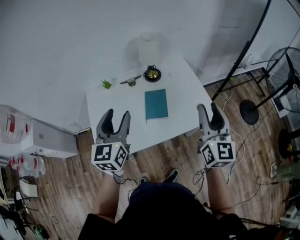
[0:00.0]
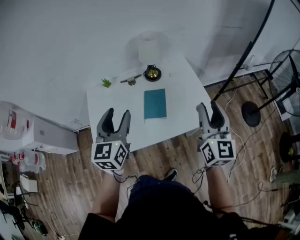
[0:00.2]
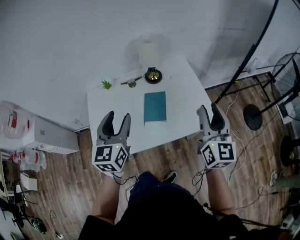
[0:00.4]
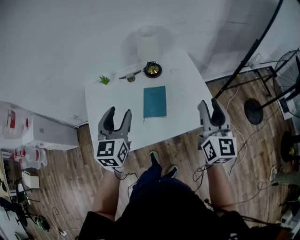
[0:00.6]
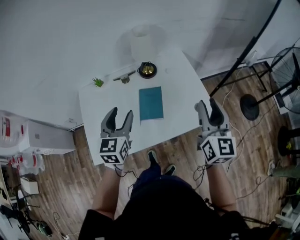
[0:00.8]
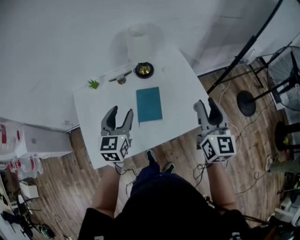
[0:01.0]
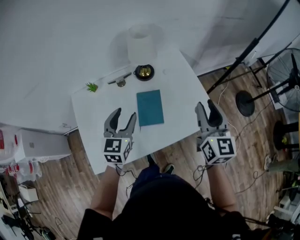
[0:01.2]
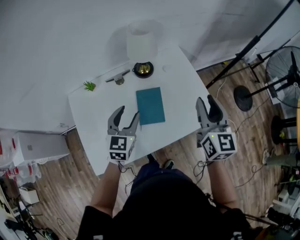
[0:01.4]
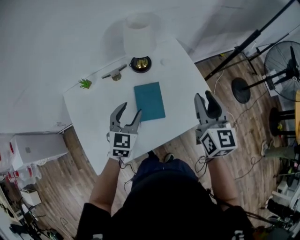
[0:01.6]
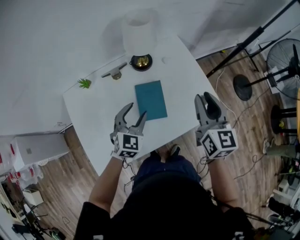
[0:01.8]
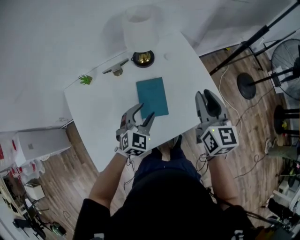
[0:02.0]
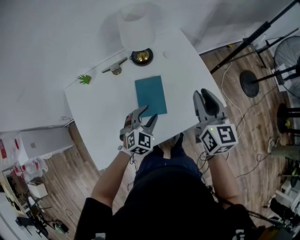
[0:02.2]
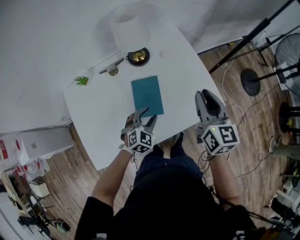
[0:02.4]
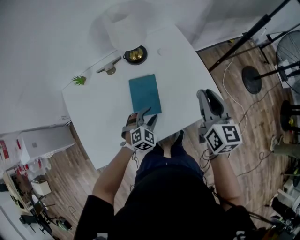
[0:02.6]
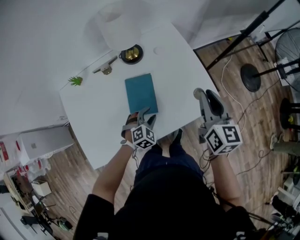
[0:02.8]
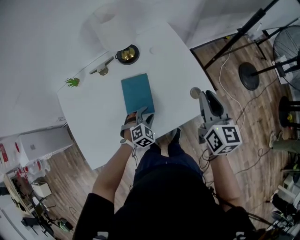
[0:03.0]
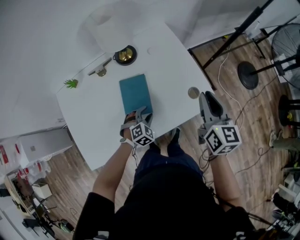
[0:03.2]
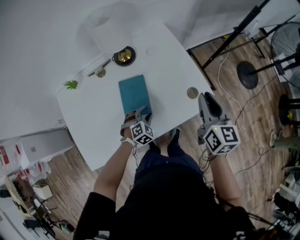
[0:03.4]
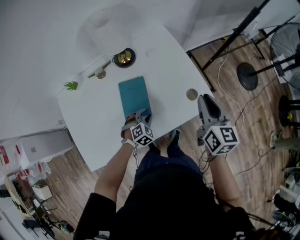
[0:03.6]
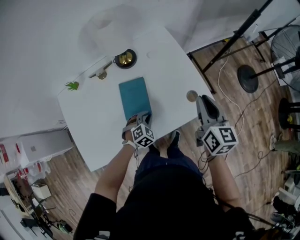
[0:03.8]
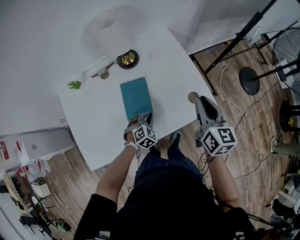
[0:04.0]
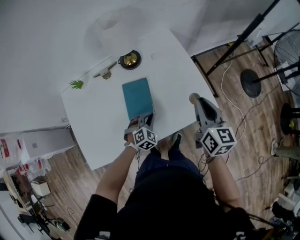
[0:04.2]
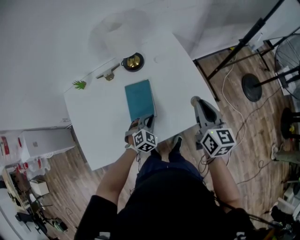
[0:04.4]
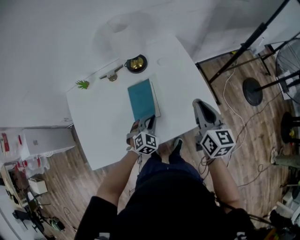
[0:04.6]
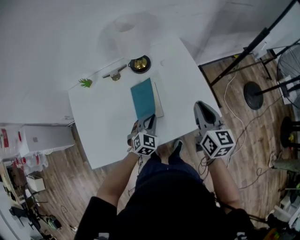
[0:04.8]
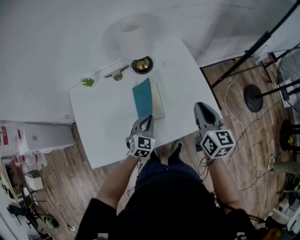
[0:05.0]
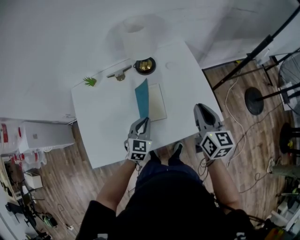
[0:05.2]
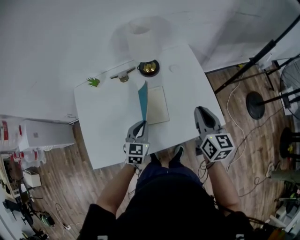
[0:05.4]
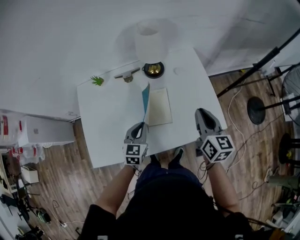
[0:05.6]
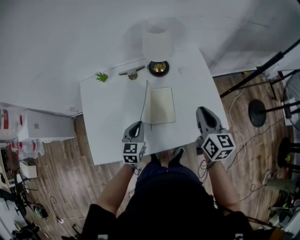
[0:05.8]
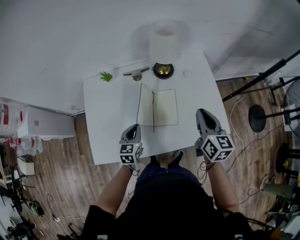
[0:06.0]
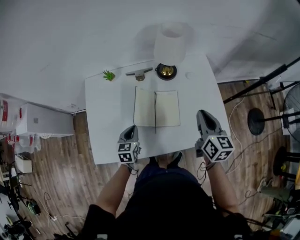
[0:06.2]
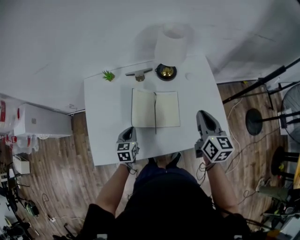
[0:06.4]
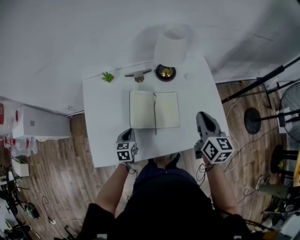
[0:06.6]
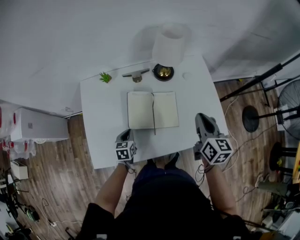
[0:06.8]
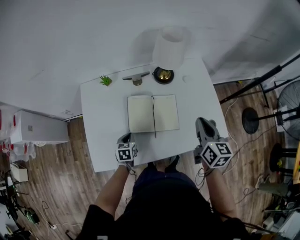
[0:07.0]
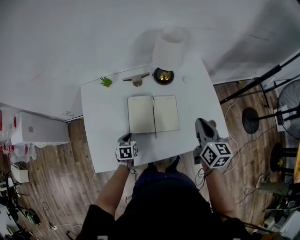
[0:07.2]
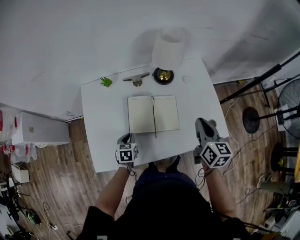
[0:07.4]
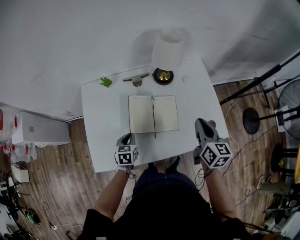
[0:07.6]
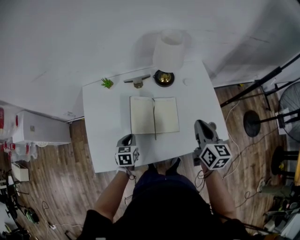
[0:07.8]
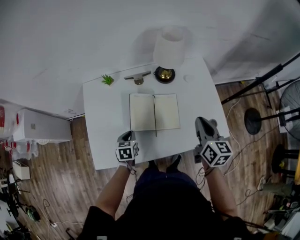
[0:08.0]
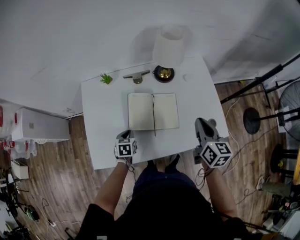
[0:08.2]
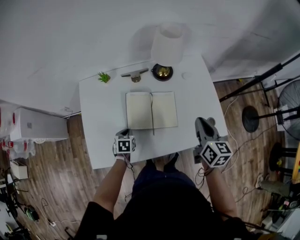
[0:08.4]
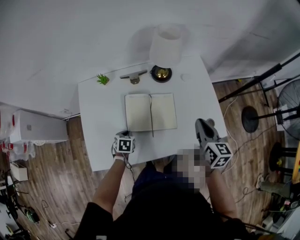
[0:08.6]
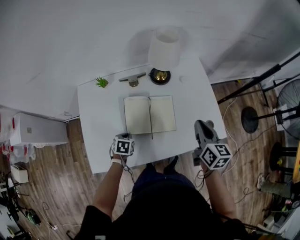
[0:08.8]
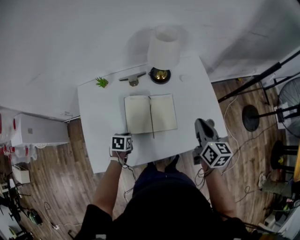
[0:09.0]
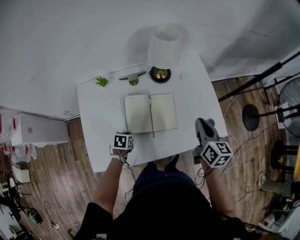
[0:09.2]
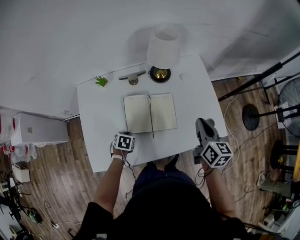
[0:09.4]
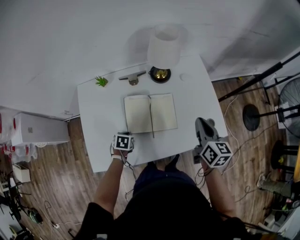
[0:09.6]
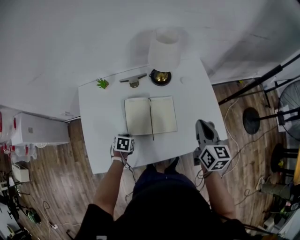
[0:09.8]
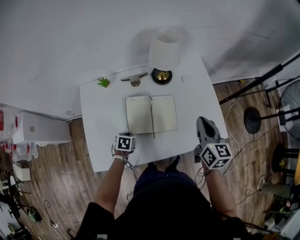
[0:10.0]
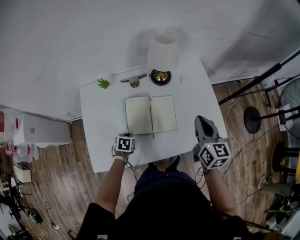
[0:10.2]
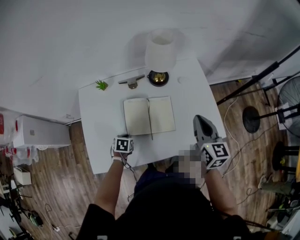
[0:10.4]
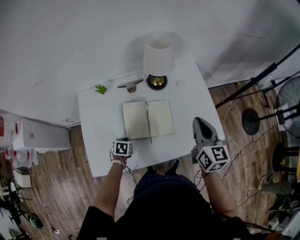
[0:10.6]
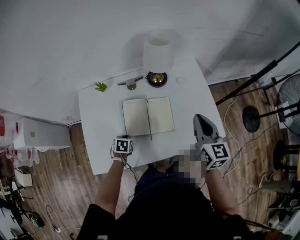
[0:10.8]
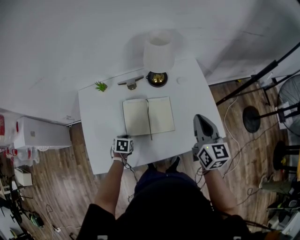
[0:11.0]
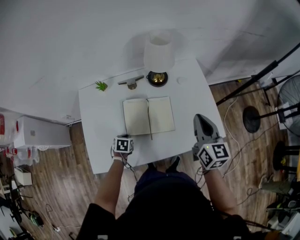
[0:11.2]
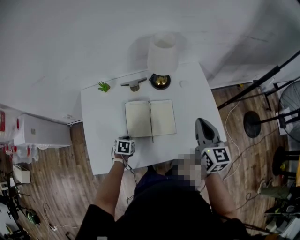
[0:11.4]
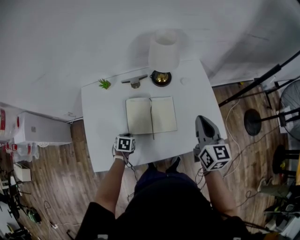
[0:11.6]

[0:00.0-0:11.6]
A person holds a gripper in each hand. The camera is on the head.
0:00.0 to 0:01.4: Both grippers travel together forward and downward, about 20 cm. The left gripper rotates roughly 20 degrees.
0:01.4 to 0:02.8: The left gripper heads downward and to the right, covering approximately 30 cm, and tilts its fingers approximately 30 degrees downward, while the right gripper travels downward and to the right by some 15 cm.
0:02.8 to 0:04.4: The left gripper closes up.
0:04.4 to 0:05.8: The left gripper travels to the left and upward by about 20 cm, and twists about 50 degrees counterclockwise, seen from behind. Meanwhile the right gripper goes approximately 10 cm to the left.
0:05.8 to 0:07.2: The left gripper is displaced downward and to the left by approximately 20 cm, and changes its angle by about 30 degrees. Meanwhile the right gripper is displaced to the left by roughly 5 cm.
0:08.8 to 0:11.6: There are only small adjustments of the grippers.

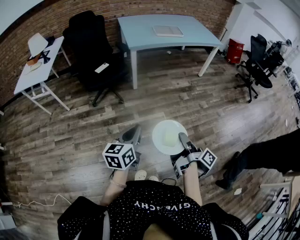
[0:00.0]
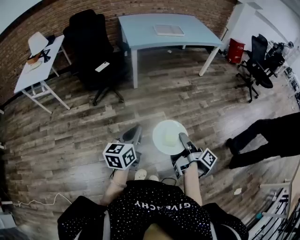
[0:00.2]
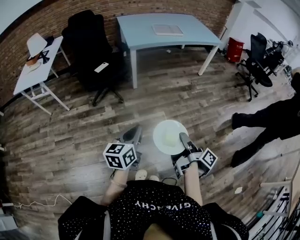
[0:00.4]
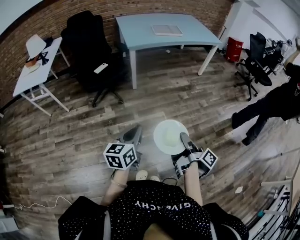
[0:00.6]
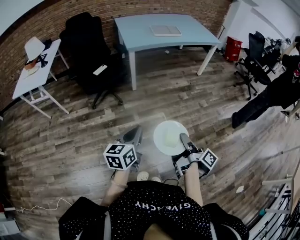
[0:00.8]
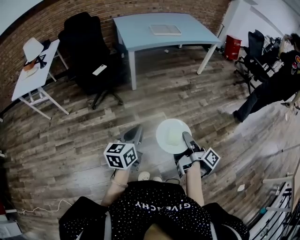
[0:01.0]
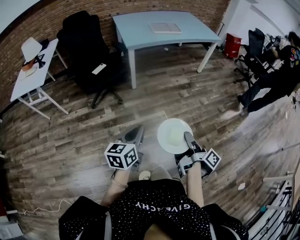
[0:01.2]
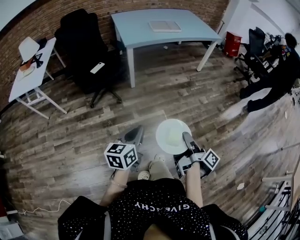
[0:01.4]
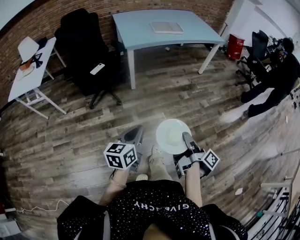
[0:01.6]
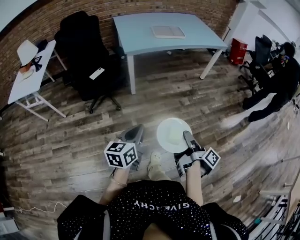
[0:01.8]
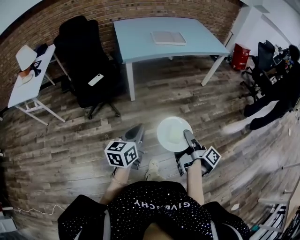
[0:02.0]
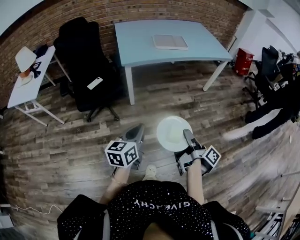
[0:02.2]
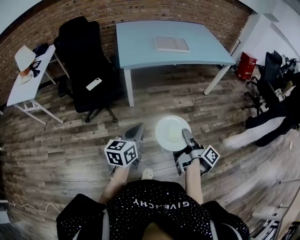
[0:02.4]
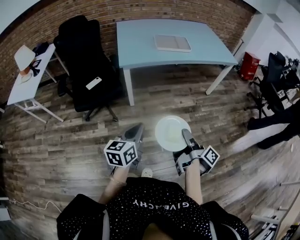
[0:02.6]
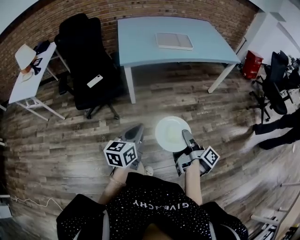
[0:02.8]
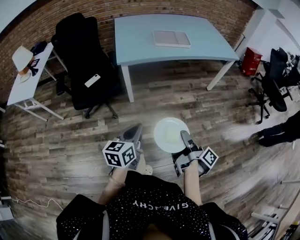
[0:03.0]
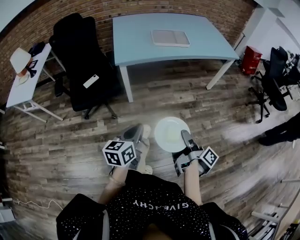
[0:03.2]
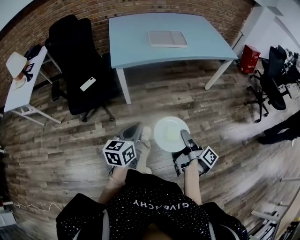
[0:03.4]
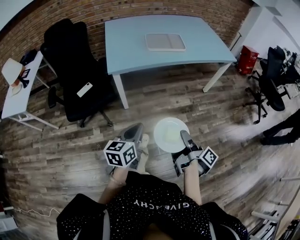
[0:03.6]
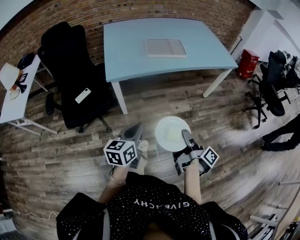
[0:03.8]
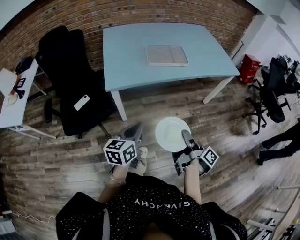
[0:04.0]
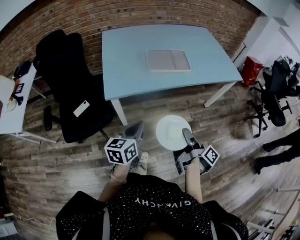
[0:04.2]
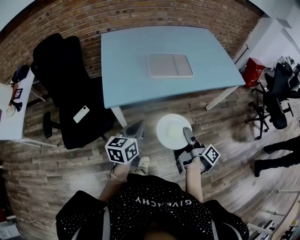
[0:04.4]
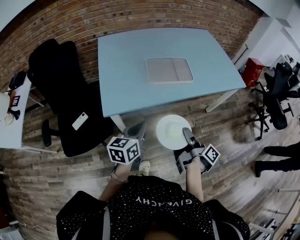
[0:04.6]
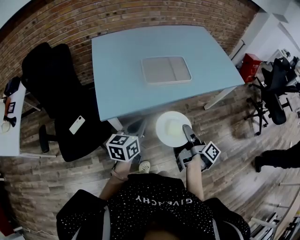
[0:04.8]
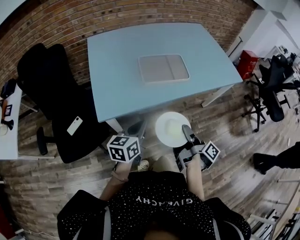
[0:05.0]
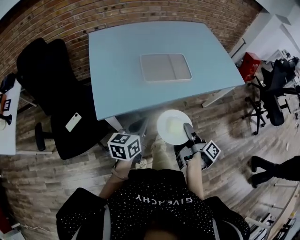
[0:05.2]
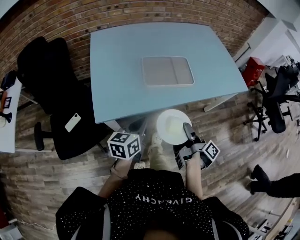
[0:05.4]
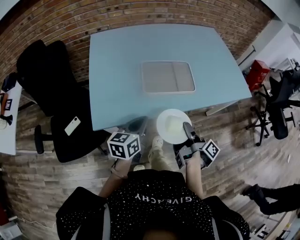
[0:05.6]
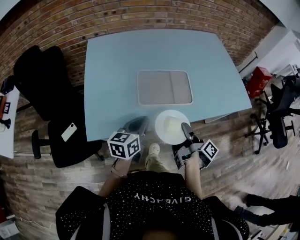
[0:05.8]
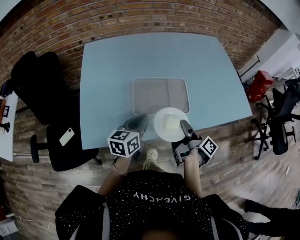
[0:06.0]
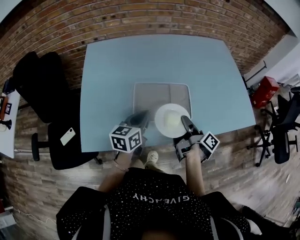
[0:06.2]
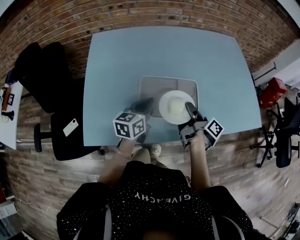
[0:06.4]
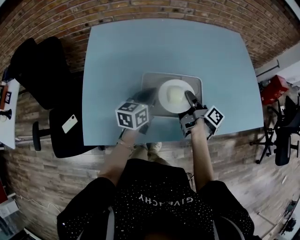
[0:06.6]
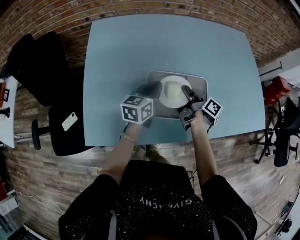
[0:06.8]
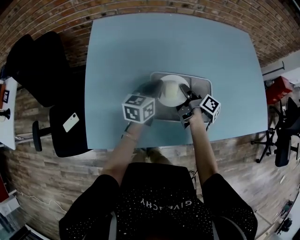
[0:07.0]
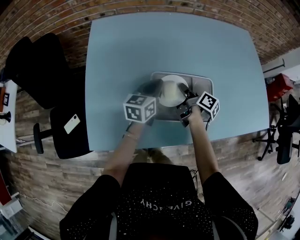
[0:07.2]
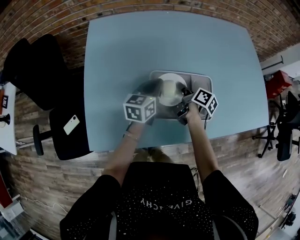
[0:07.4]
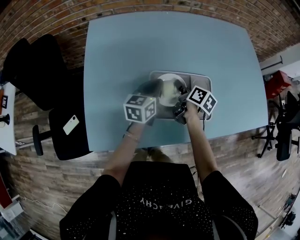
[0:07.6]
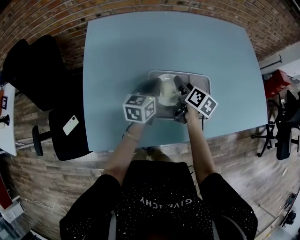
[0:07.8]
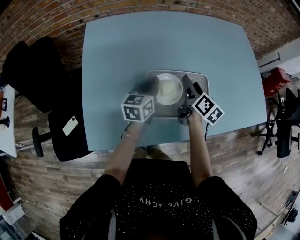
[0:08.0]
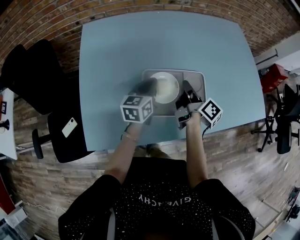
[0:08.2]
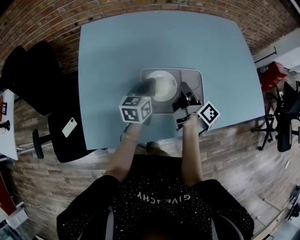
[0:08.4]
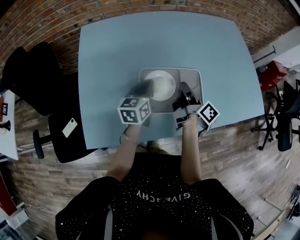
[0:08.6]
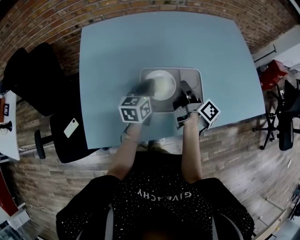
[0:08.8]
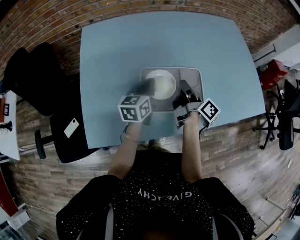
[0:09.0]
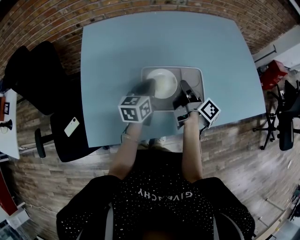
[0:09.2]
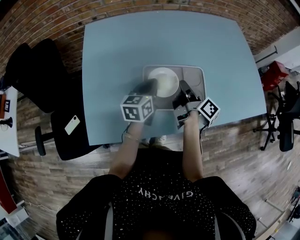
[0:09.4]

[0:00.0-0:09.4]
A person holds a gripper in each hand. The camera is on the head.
0:00.0 to 0:01.6: The left gripper shifts by about 10 cm.
0:01.6 to 0:03.2: The left gripper shifts by approximately 30 cm.
0:03.2 to 0:04.8: The left gripper changes place by some 50 cm.
0:04.8 to 0:06.2: The left gripper ends up approximately 30 cm from where it was.
0:06.2 to 0:07.8: The left gripper changes place by approximately 15 cm.

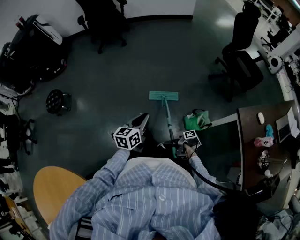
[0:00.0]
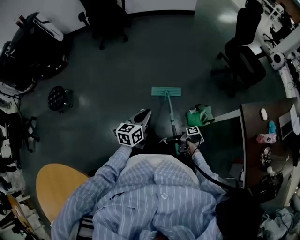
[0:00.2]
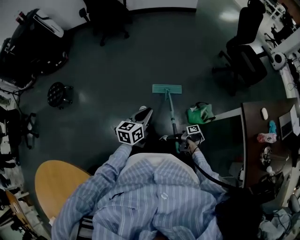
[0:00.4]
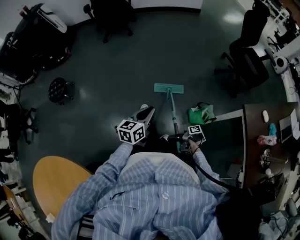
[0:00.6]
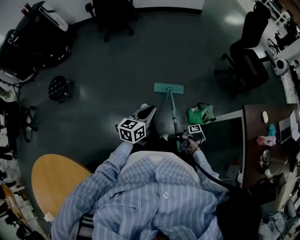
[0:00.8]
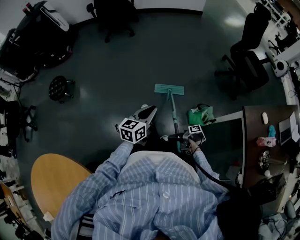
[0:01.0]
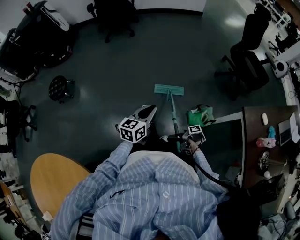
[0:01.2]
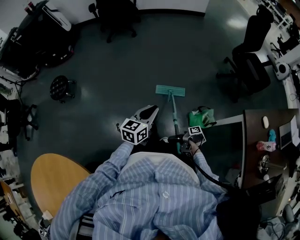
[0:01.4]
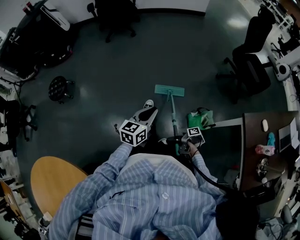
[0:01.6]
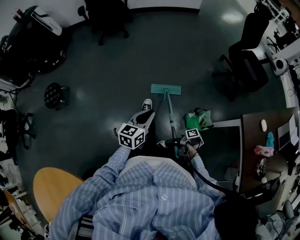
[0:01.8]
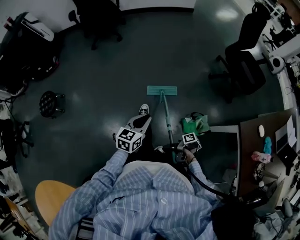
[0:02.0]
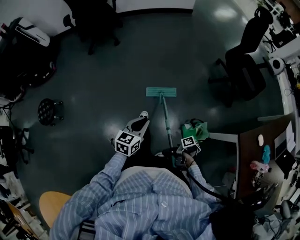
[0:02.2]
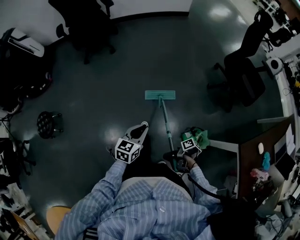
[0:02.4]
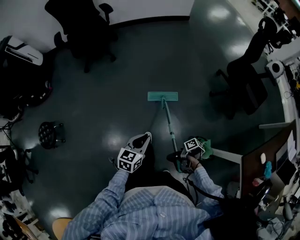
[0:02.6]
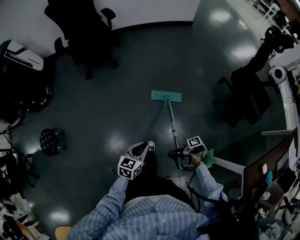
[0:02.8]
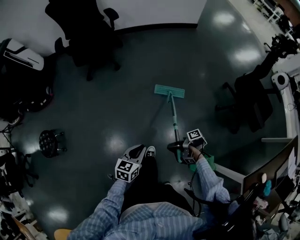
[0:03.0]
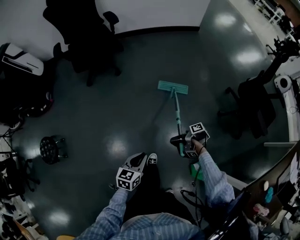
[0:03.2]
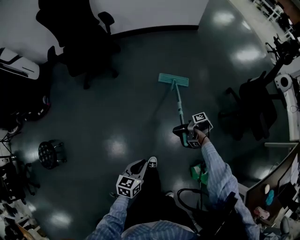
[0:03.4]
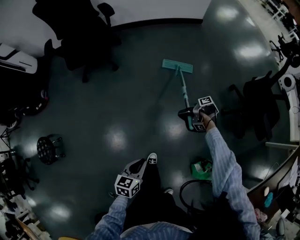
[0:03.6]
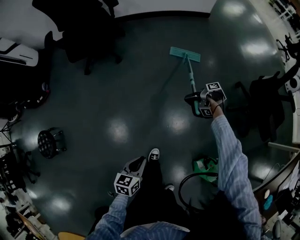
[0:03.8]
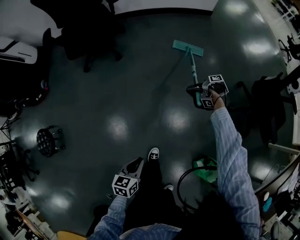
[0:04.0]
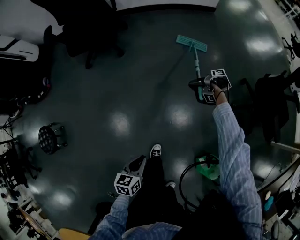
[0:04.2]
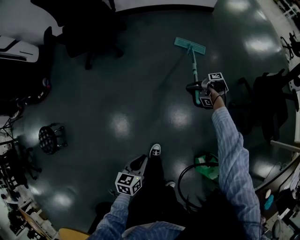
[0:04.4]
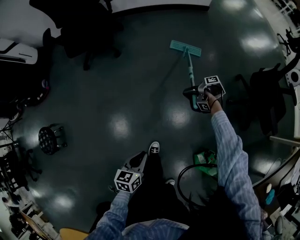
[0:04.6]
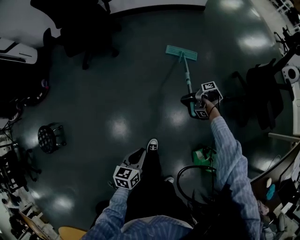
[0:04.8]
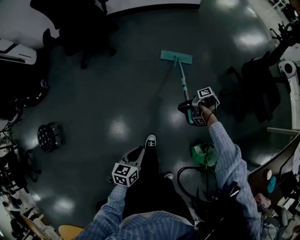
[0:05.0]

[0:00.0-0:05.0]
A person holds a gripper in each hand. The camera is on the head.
0:01.6 to 0:03.4: The left gripper ends up roughly 40 cm from where it was.
0:03.4 to 0:05.0: The left gripper shifts by some 5 cm.
